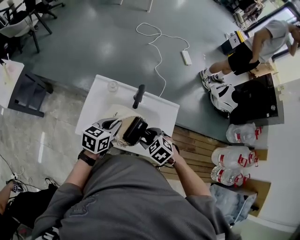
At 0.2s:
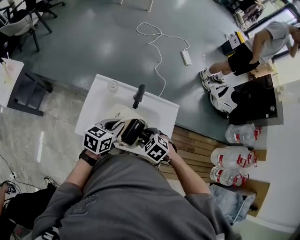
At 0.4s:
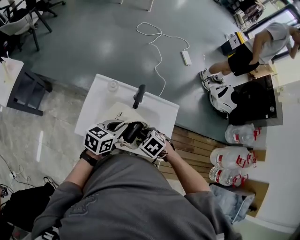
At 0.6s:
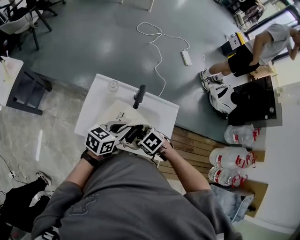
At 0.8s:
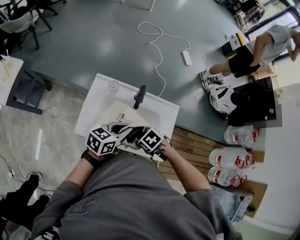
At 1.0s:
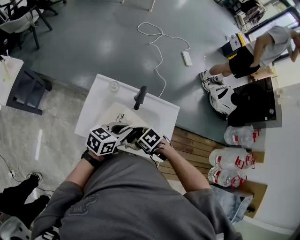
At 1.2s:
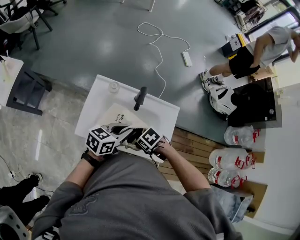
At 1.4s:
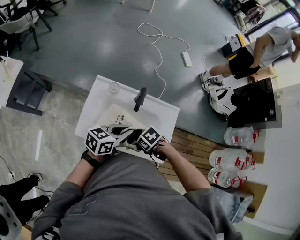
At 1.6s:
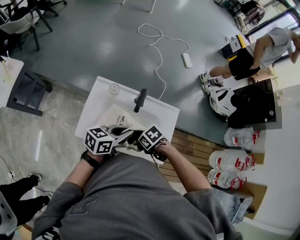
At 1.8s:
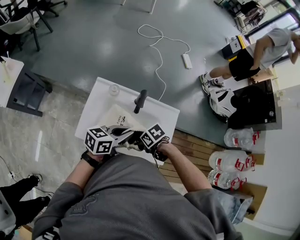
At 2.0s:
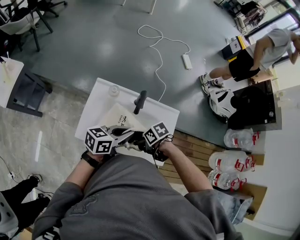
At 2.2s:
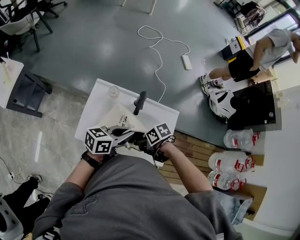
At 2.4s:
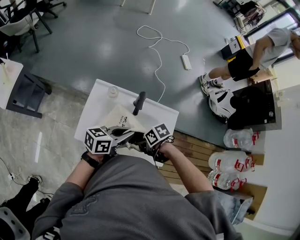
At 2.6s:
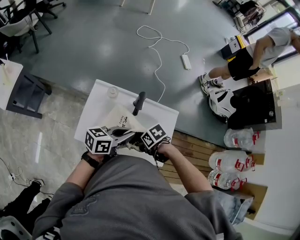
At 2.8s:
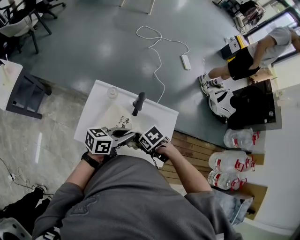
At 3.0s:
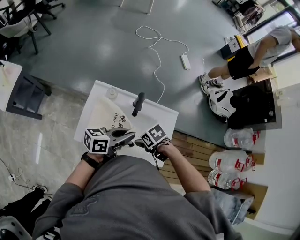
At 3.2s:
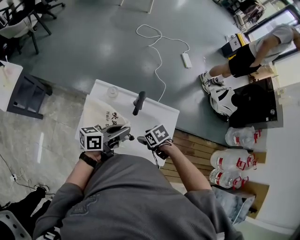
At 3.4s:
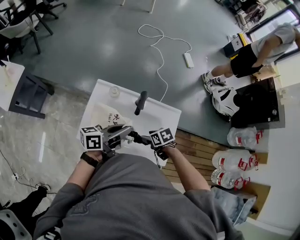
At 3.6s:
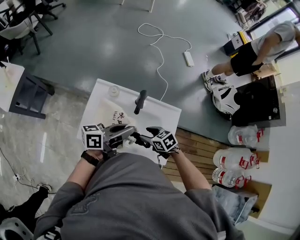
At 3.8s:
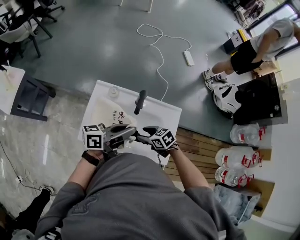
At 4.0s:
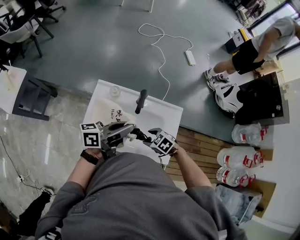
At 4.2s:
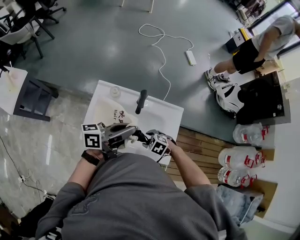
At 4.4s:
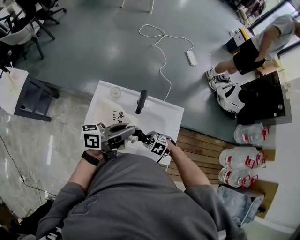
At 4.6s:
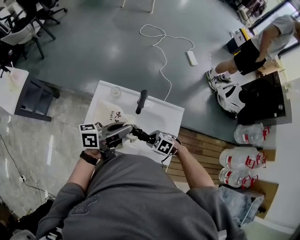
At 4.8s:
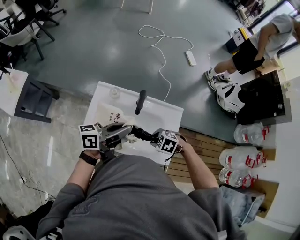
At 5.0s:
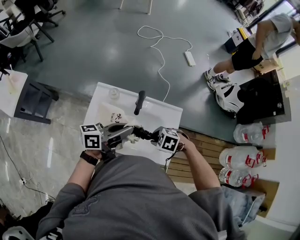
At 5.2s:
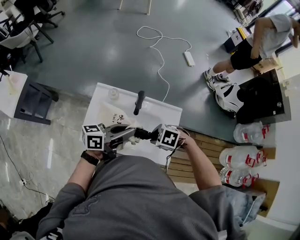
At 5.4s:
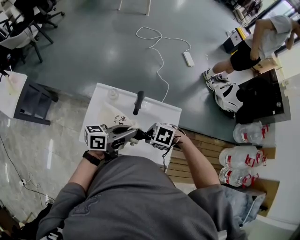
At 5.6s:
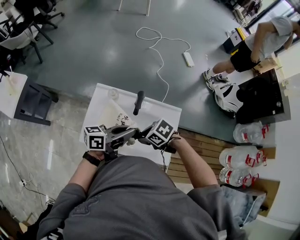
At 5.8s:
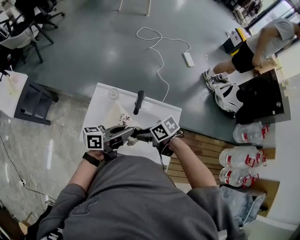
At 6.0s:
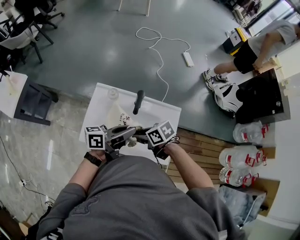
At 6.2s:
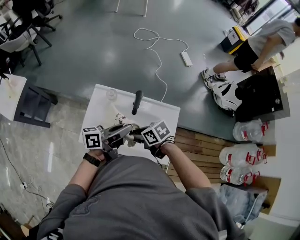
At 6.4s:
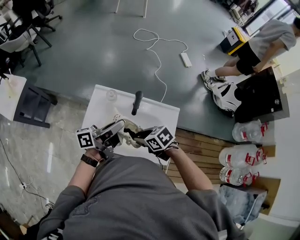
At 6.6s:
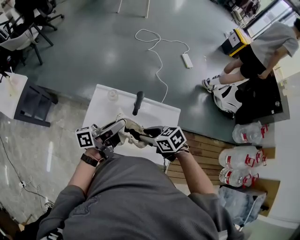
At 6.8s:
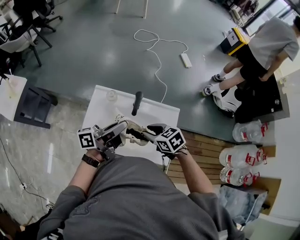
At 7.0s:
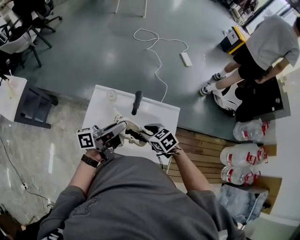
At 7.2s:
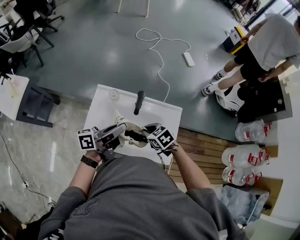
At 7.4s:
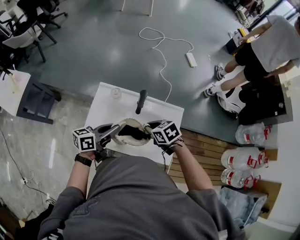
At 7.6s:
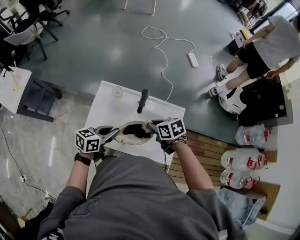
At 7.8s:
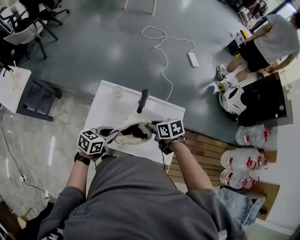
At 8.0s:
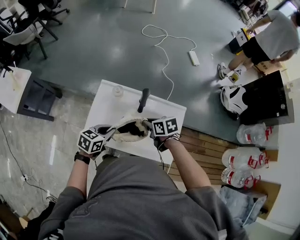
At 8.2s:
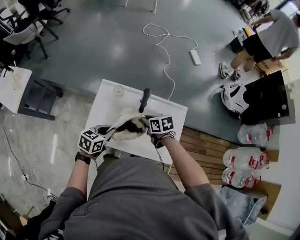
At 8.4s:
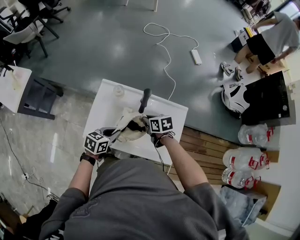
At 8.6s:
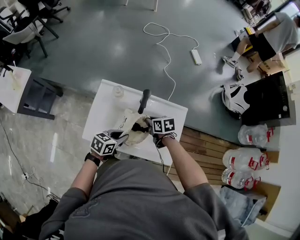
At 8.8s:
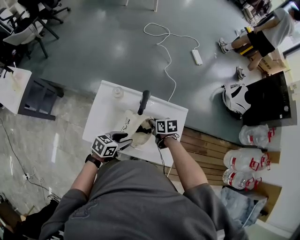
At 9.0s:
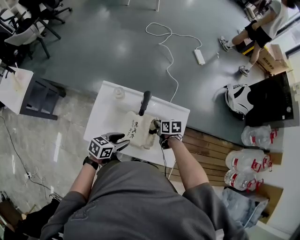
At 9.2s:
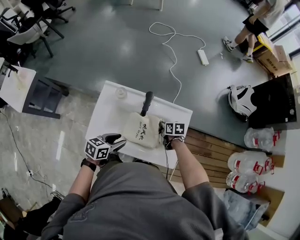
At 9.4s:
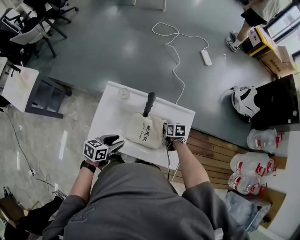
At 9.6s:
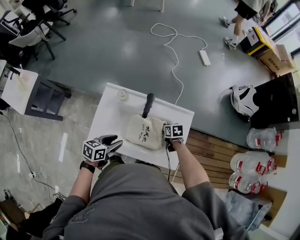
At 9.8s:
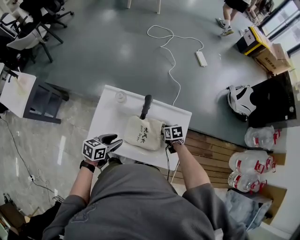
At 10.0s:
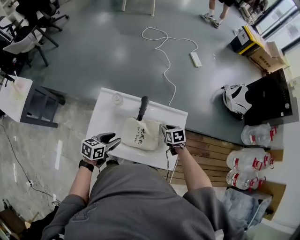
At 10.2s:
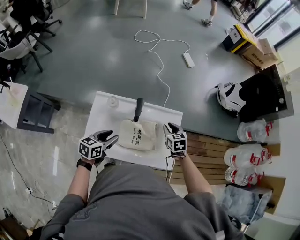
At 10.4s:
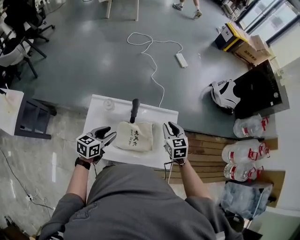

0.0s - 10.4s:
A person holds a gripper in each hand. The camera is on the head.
0.0s - 1.4s: The right gripper travels downward by approximately 5 cm, and rotates roughly 30 degrees; the left gripper moves some 5 cm.
1.4s - 3.0s: The right gripper ends up approximately 5 cm from where it was.
3.0s - 4.4s: The left gripper moves upward, roughly 5 cm. Meanwhile the right gripper shifts approximately 10 cm downward, turns by roughly 40 degrees, and closes its fingers.
4.4s - 6.0s: The right gripper heads upward, covering roughly 15 cm, and rolls clockwise, seen from behind, by roughly 40 degrees.
6.0s - 7.4s: The right gripper ends up about 5 cm from where it was, swivels about 20 degrees, and closes. Meanwhile the left gripper moves roughly 10 cm.
7.4s - 9.0s: The left gripper goes approximately 10 cm downward, rotates approximately 30 degrees, and opens up. The right gripper is displaced downward, to the right and forward by approximately 15 cm, and swivels approximately 30 degrees.
9.0s - 10.4s: The right gripper is displaced upward and to the right by about 15 cm, and changes its angle by about 40 degrees, while the left gripper is displaced forward, to the left and upward by approximately 10 cm.

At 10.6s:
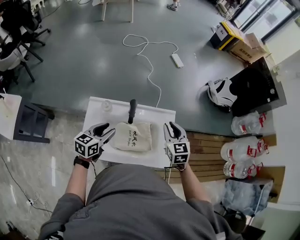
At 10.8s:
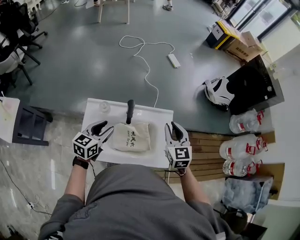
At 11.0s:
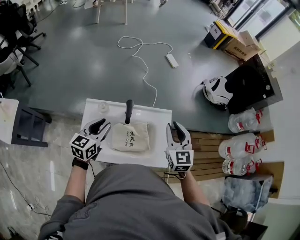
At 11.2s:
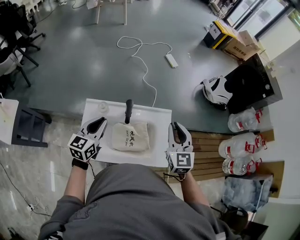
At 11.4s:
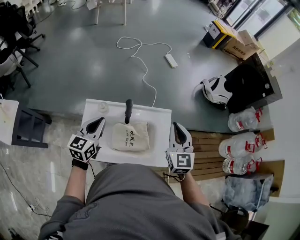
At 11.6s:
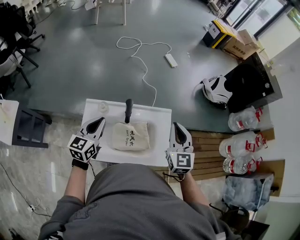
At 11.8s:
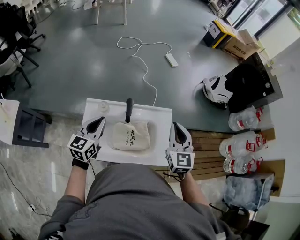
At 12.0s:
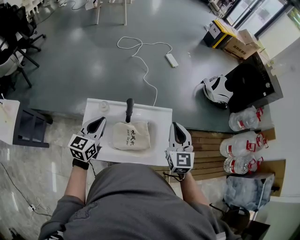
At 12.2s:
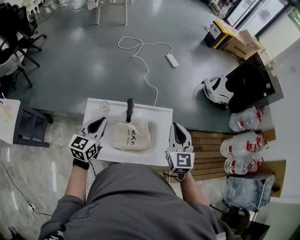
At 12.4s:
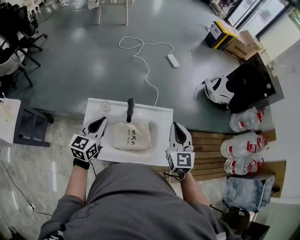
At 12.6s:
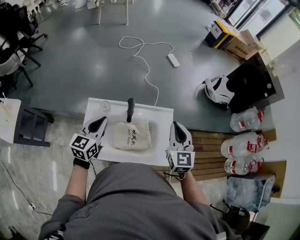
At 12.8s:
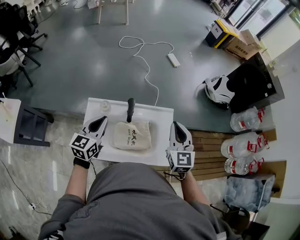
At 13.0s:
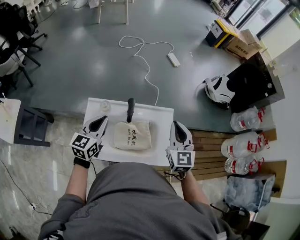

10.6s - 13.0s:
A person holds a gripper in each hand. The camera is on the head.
10.6s - 11.8s: Both grippers move upward, about 10 cm. The left gripper closes up.
11.8s - 13.0s: Neither gripper changes place.

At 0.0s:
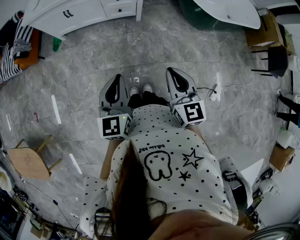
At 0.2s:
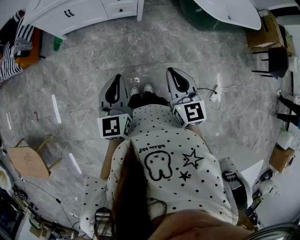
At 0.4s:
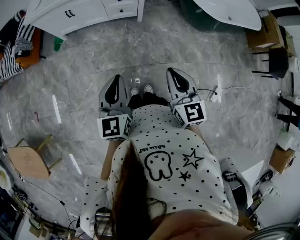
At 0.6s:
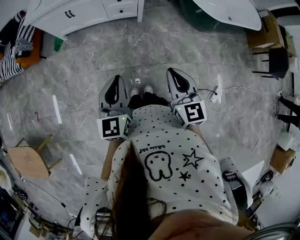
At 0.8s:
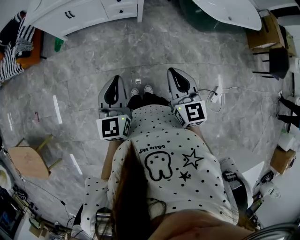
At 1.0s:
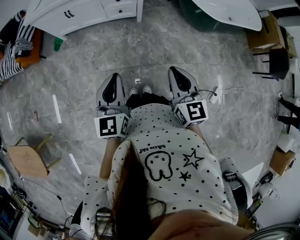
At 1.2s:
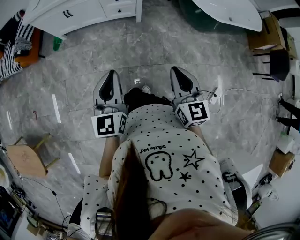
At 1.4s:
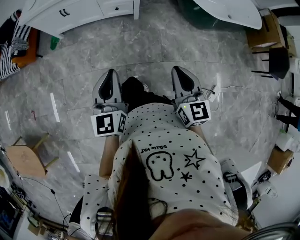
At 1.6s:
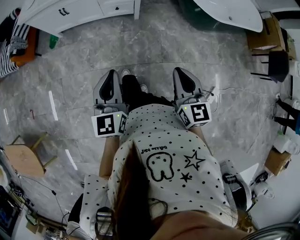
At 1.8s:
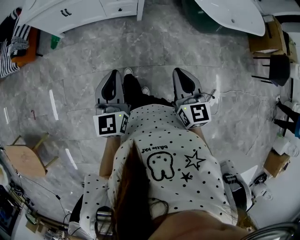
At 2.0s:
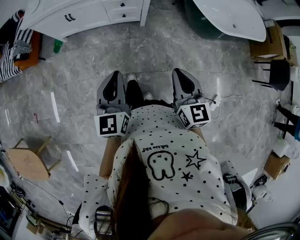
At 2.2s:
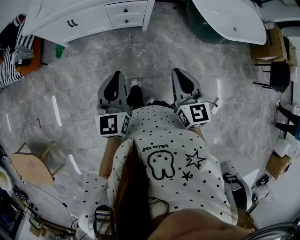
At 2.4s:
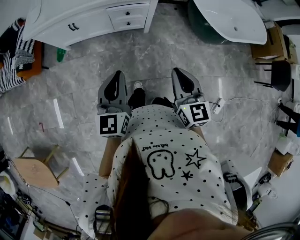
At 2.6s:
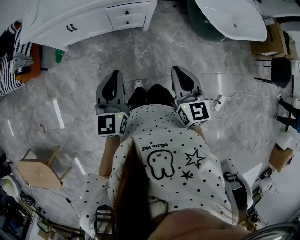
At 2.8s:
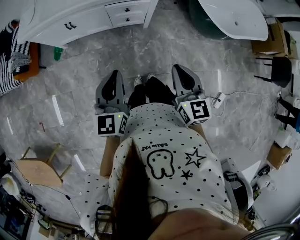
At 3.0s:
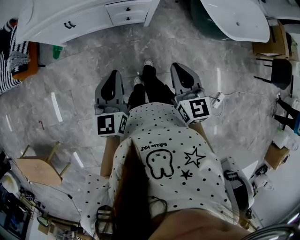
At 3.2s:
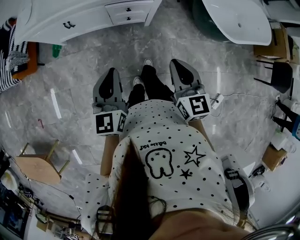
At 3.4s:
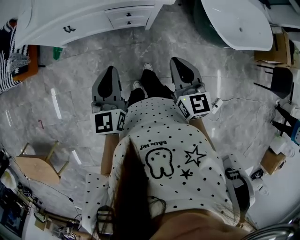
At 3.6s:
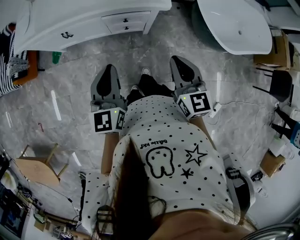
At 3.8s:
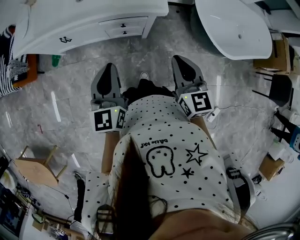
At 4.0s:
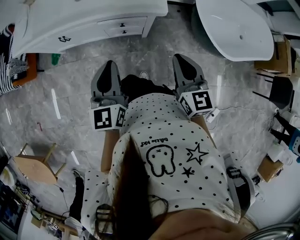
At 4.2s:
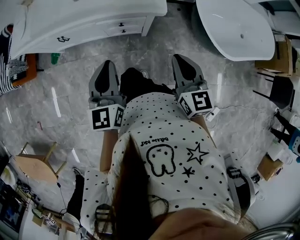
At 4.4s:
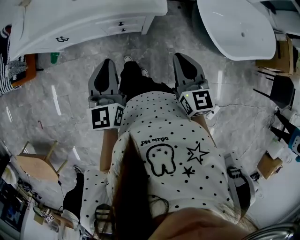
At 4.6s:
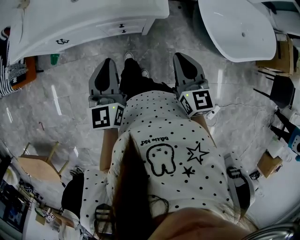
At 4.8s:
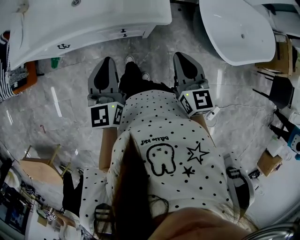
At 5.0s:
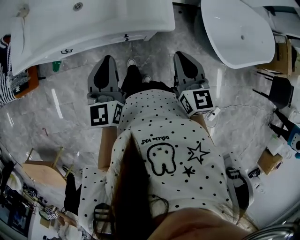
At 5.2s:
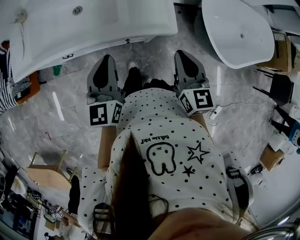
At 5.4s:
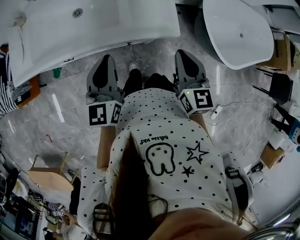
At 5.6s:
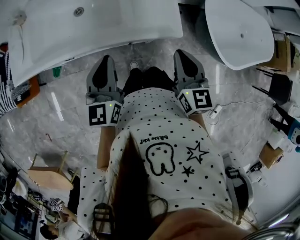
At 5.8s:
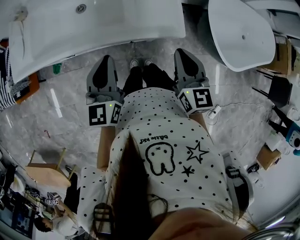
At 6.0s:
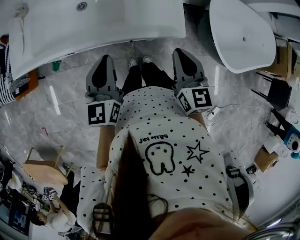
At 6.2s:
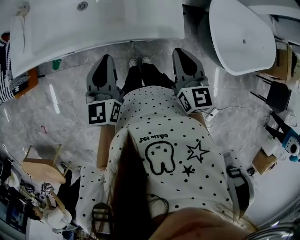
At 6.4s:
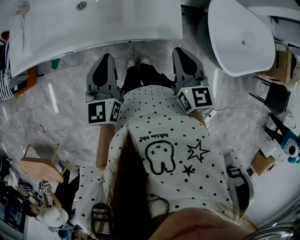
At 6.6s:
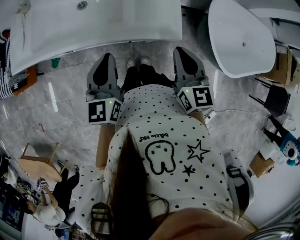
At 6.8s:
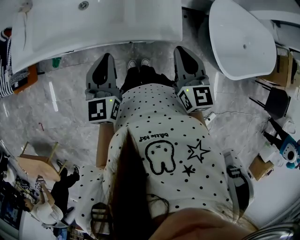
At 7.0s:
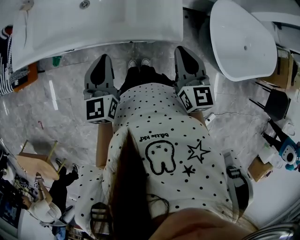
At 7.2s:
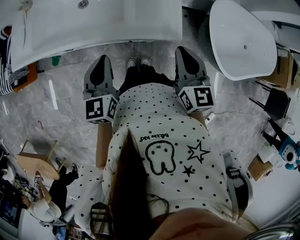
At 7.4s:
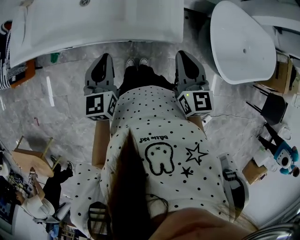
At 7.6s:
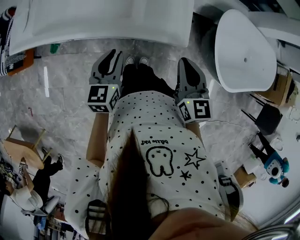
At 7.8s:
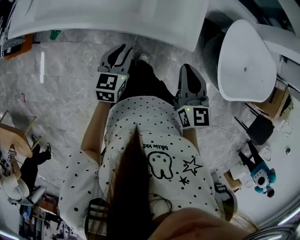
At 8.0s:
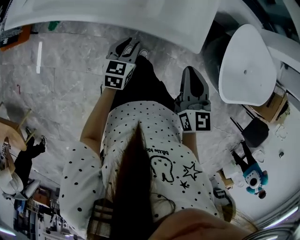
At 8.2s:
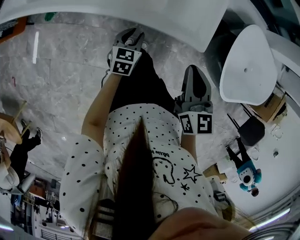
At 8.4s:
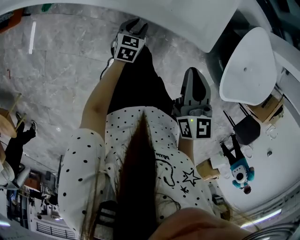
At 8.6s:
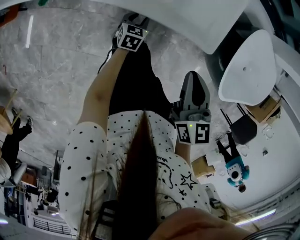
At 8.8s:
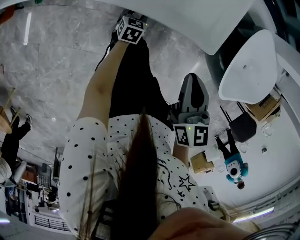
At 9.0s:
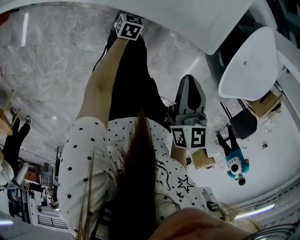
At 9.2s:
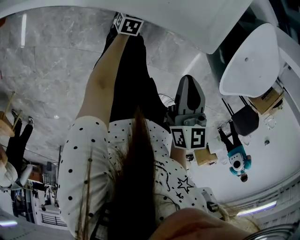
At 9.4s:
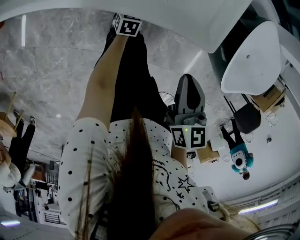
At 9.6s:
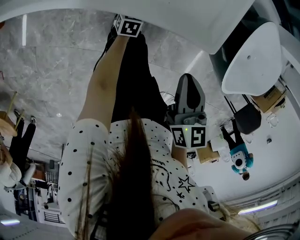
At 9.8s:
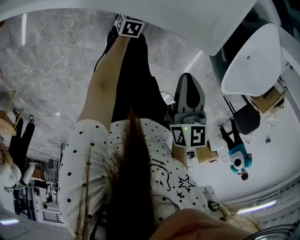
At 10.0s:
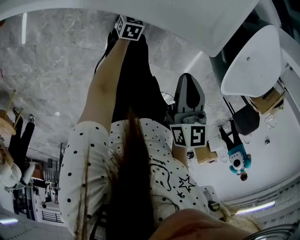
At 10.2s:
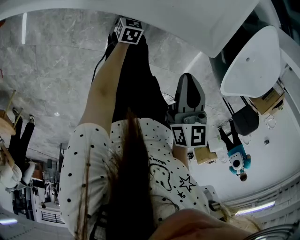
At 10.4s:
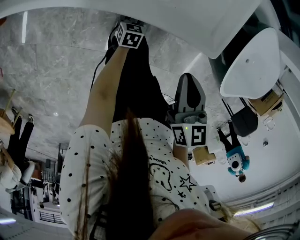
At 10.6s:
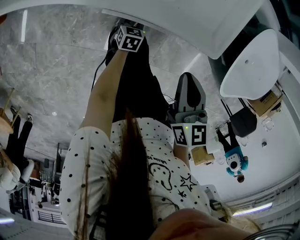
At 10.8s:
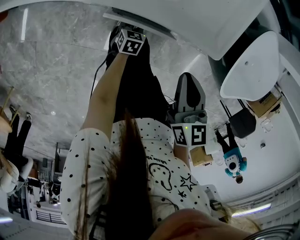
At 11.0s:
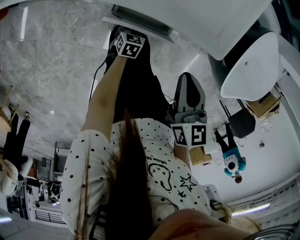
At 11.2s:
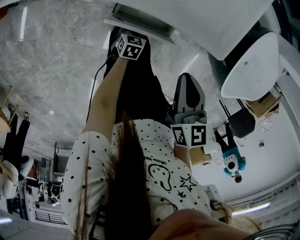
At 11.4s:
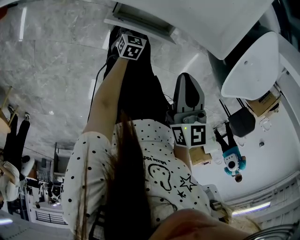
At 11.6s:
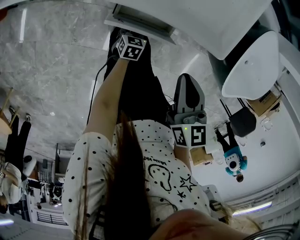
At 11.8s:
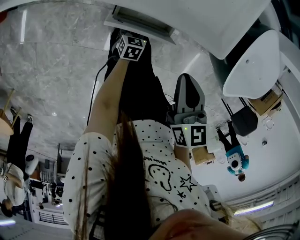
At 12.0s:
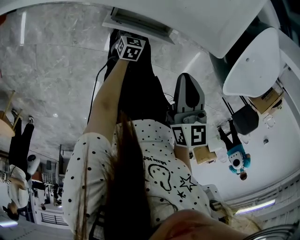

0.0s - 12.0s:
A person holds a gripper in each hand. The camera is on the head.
0.0s - 1.6s: The right gripper goes some 5 cm to the right.
1.6s - 3.0s: The two grippers go approximately 25 cm forward and to the left.
3.0s - 4.4s: The two grippers go about 20 cm forward and to the right.
4.4s - 6.0s: The two grippers go about 20 cm forward and to the left.
6.0s - 7.6s: The left gripper heads downward, covering some 10 cm.
7.6s - 9.0s: The right gripper shifts some 10 cm downward. Meanwhile the left gripper goes some 40 cm downward, and rotates roughly 30 degrees.
9.0s - 10.4s: The grippers move only a little.
10.4s - 12.0s: The left gripper is displaced backward by roughly 5 cm.
